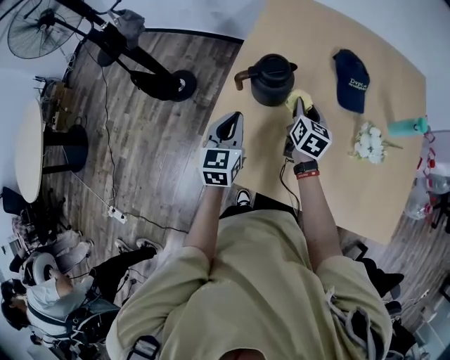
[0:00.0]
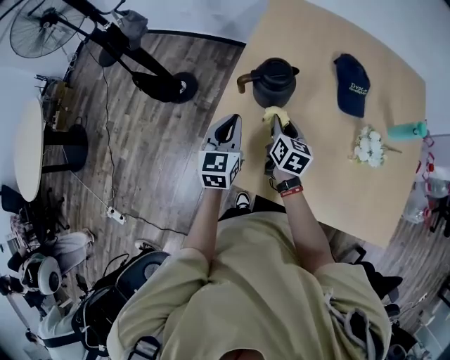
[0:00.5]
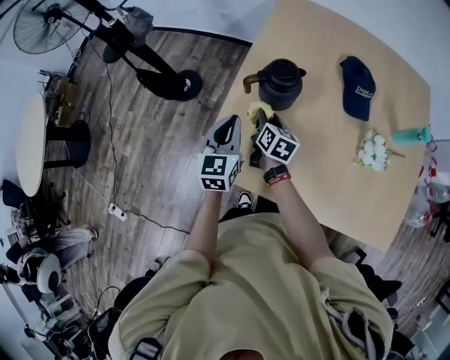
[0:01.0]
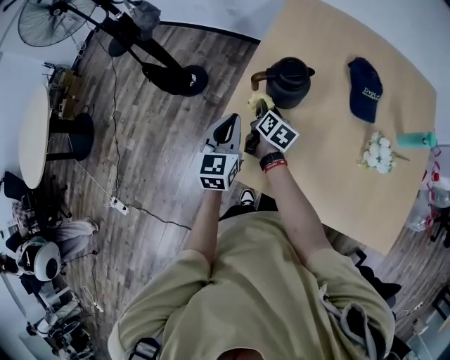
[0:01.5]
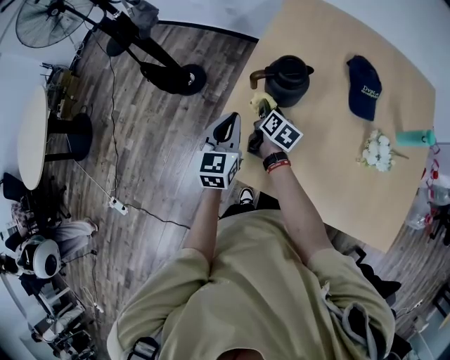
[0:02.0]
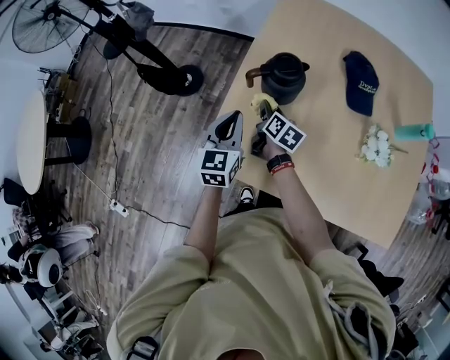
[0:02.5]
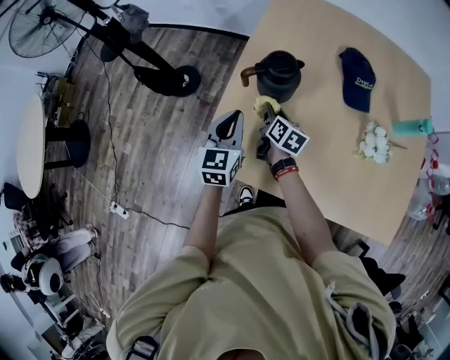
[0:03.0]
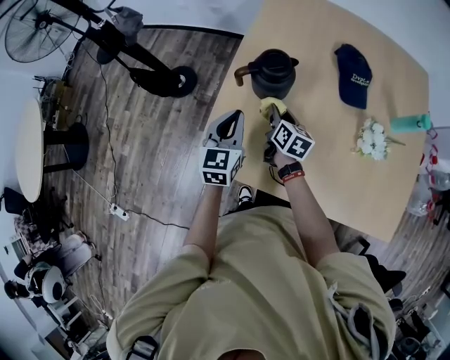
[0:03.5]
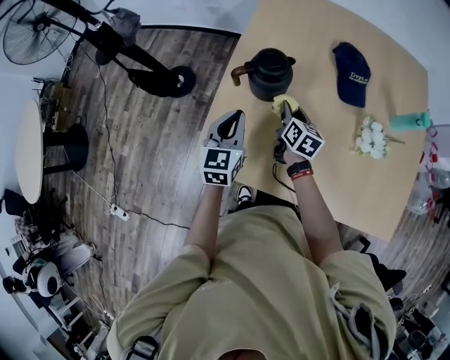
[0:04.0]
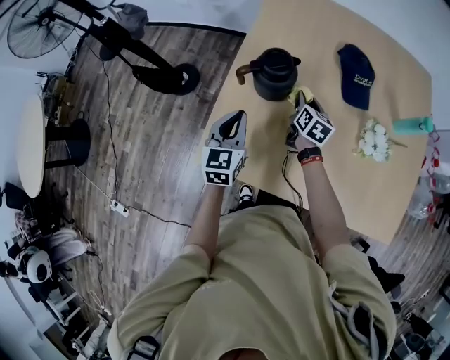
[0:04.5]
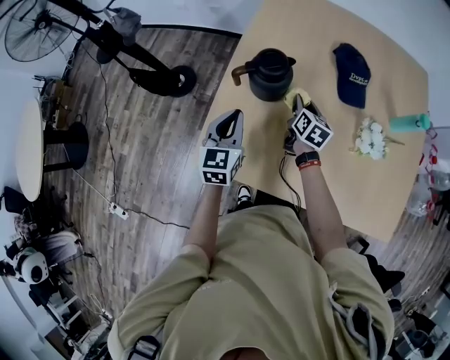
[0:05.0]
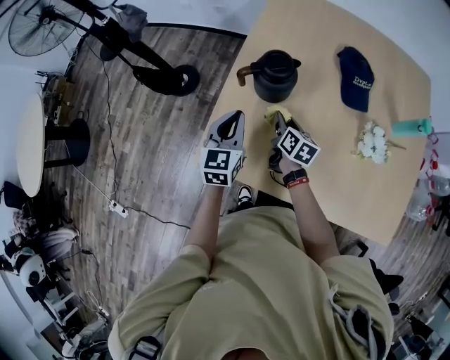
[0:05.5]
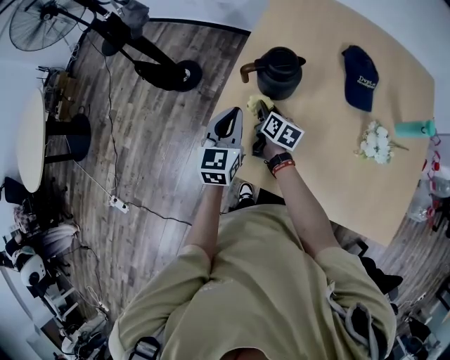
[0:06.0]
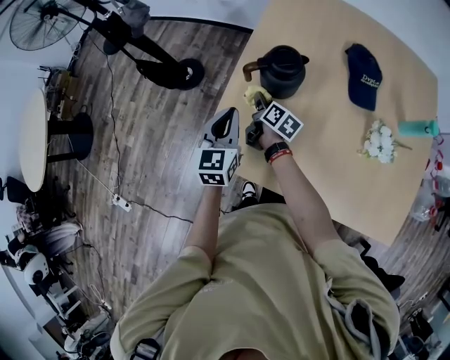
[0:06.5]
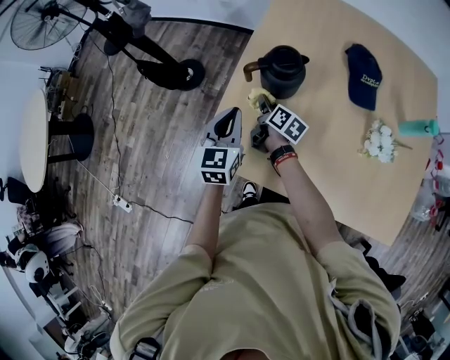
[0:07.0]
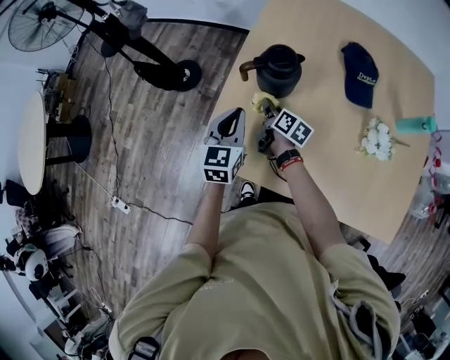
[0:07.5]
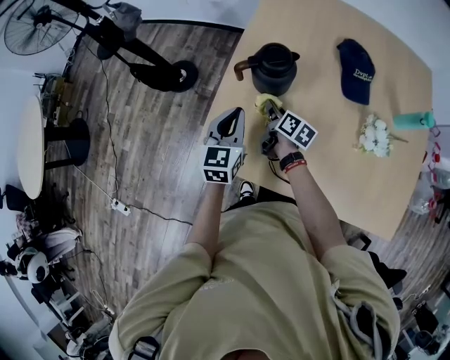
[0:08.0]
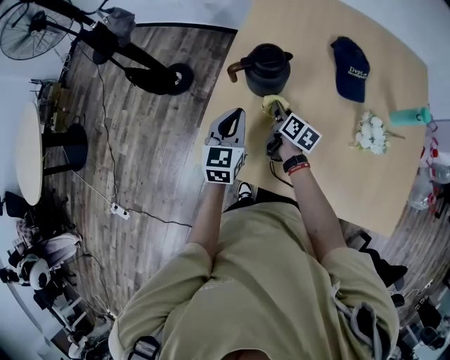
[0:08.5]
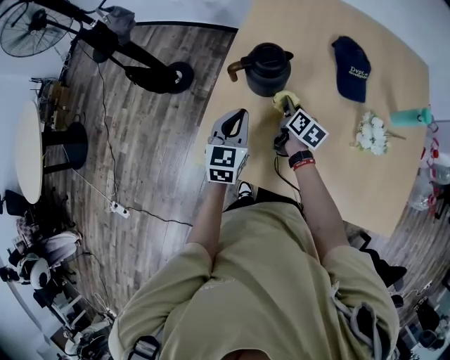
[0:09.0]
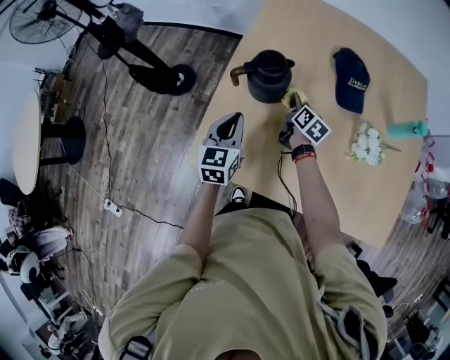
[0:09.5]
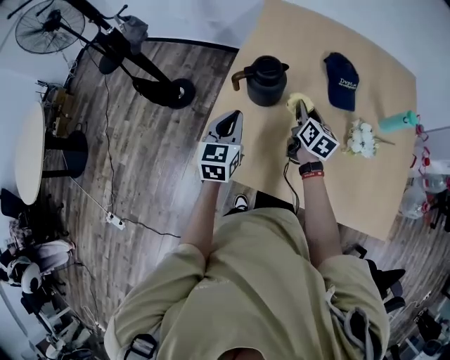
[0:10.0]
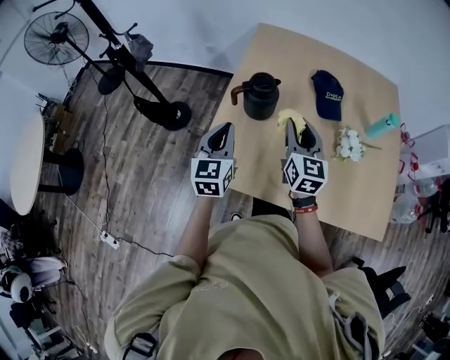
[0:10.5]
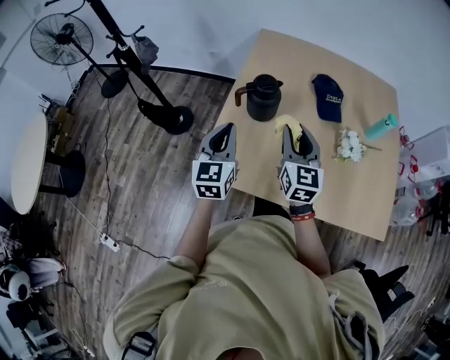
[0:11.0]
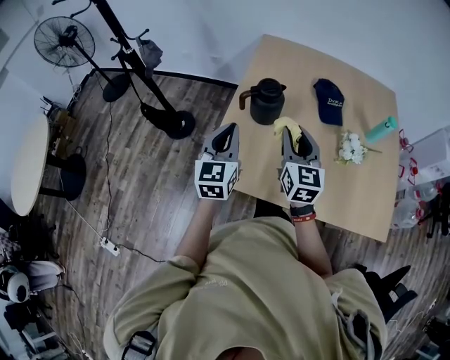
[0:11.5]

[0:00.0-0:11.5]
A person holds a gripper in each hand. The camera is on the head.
0.0 to 2.0 s: The right gripper heads to the left and downward, covering about 15 cm, and rotates roughly 30 degrees.
2.0 to 4.0 s: The right gripper travels to the right by some 10 cm. Meanwhile the left gripper shifts some 5 cm to the right.
4.0 to 6.0 s: The right gripper moves to the left, roughly 10 cm.
6.0 to 7.5 s: There are only small adjustments of the grippers.
7.5 to 9.5 s: The right gripper goes roughly 15 cm to the right.
9.5 to 11.5 s: The right gripper is displaced upward and backward by about 35 cm, and rolls counterclockwise, seen from behind, by roughly 40 degrees; the left gripper moves upward and backward, about 20 cm.

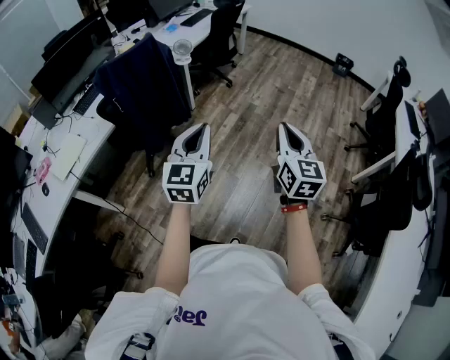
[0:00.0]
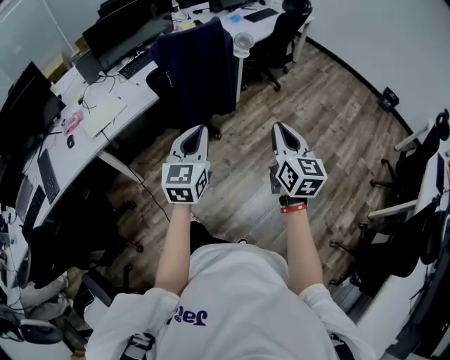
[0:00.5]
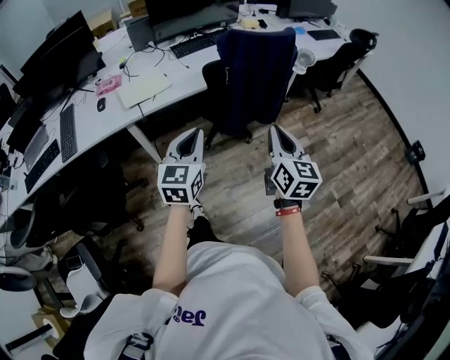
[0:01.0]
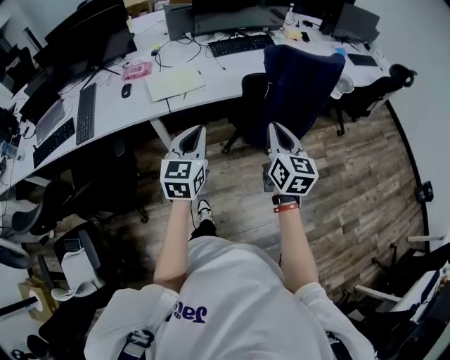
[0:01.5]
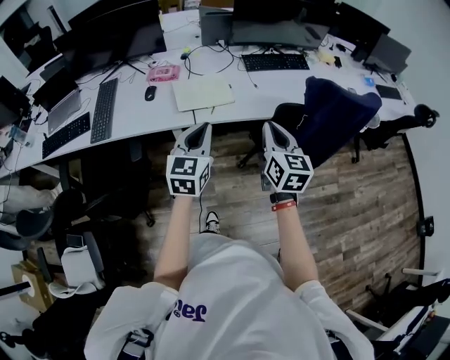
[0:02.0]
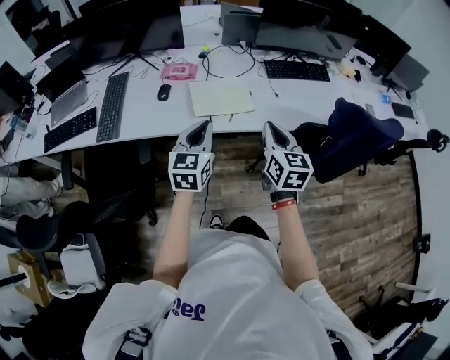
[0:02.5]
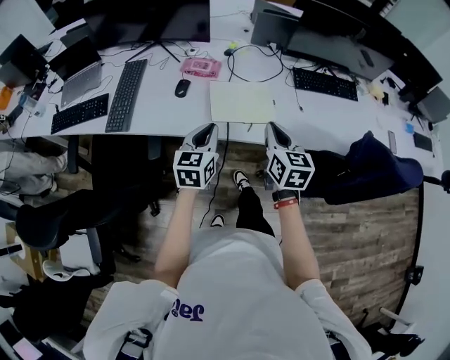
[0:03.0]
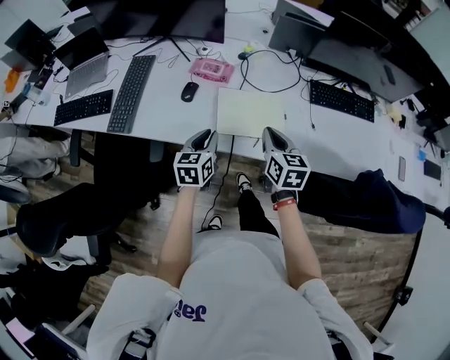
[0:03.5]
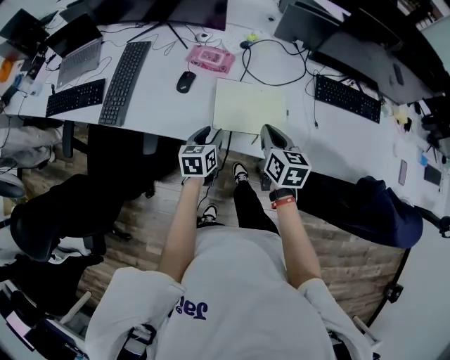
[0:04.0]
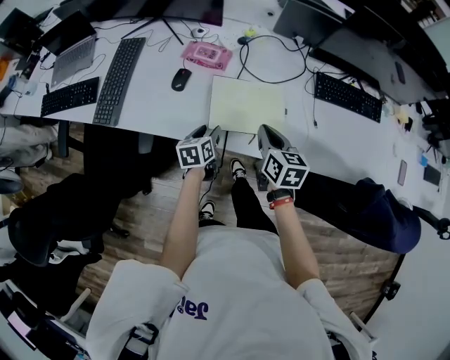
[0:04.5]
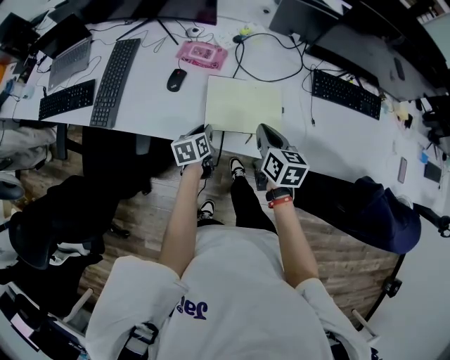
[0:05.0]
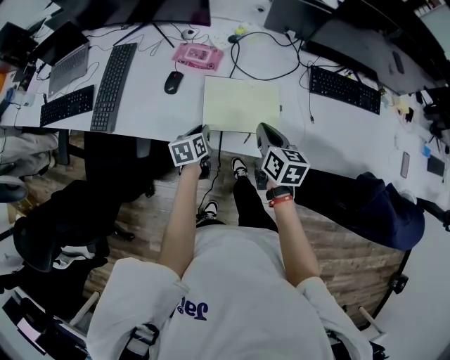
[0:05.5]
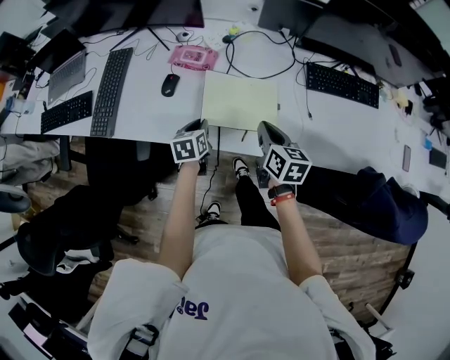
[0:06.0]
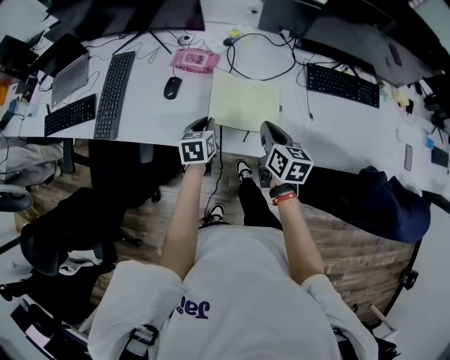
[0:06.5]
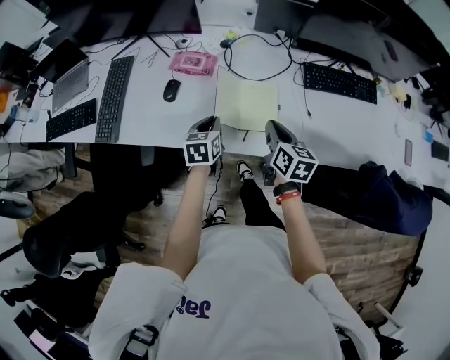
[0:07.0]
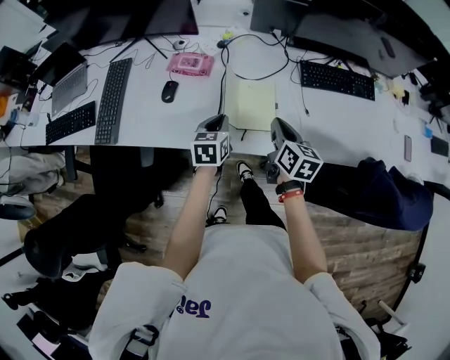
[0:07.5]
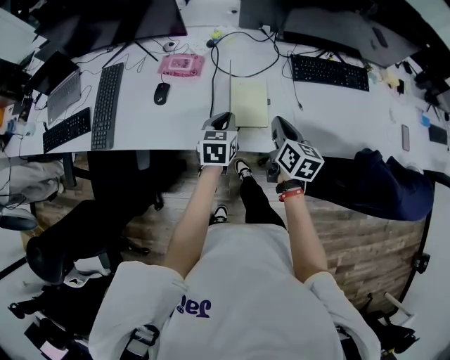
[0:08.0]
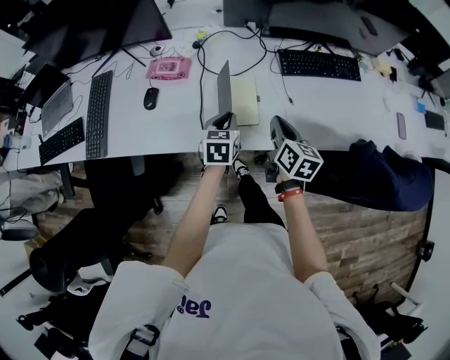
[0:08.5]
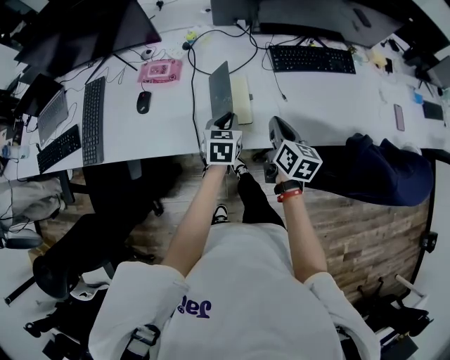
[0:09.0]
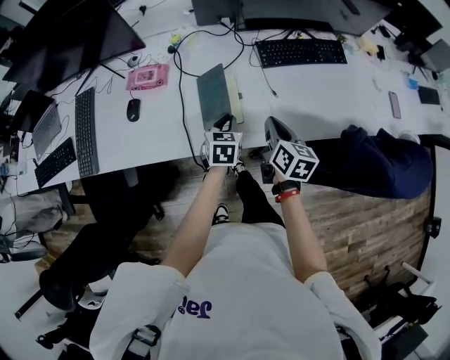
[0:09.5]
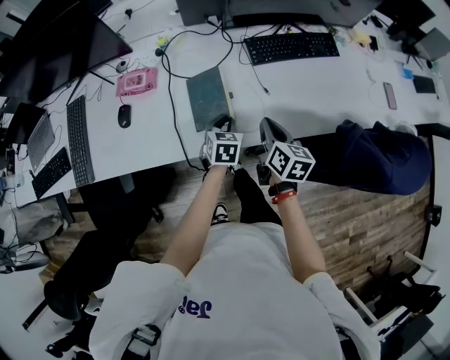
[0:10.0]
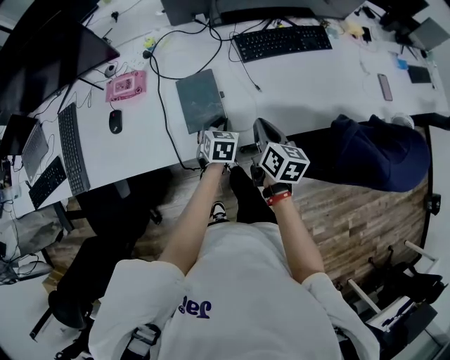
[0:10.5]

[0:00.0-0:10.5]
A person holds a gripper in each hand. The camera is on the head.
0.0 to 2.0 s: Both grippers are carried about 70 cm. The right gripper rotates about 50 degrees. Meanwhile the left gripper changes its angle by roughly 50 degrees.
2.0 to 4.0 s: The left gripper shifts some 40 cm forward and downward, turns by roughly 40 degrees, and opens up. The right gripper goes about 40 cm forward, downward and to the left, and turns by about 30 degrees.
4.0 to 6.5 s: The right gripper goes approximately 5 cm to the right. The left gripper goes some 5 cm forward, and closes its fingers.
6.5 to 8.5 s: Both grippers travel together to the right, about 15 cm.
8.5 to 10.5 s: The right gripper is displaced to the right by some 5 cm. The left gripper heads downward and to the right, covering approximately 15 cm.

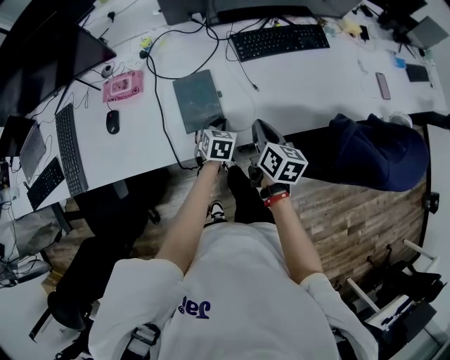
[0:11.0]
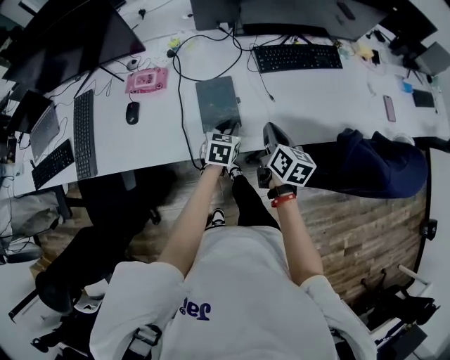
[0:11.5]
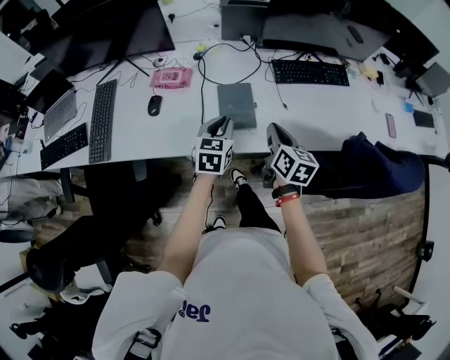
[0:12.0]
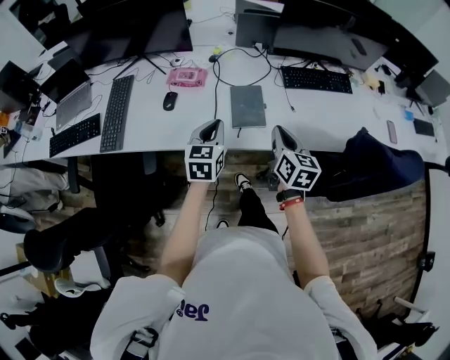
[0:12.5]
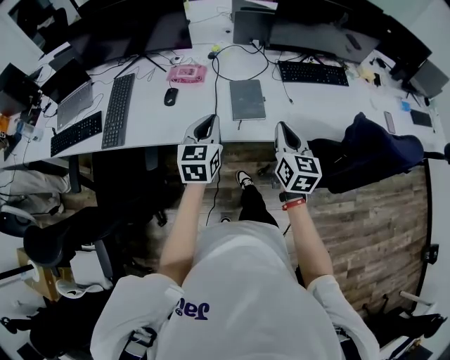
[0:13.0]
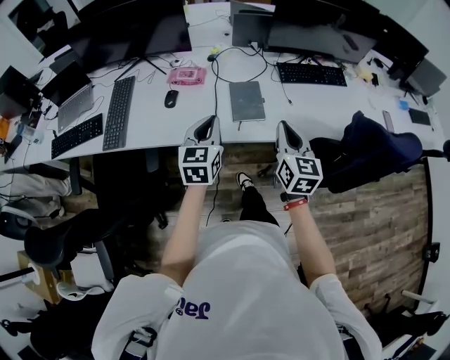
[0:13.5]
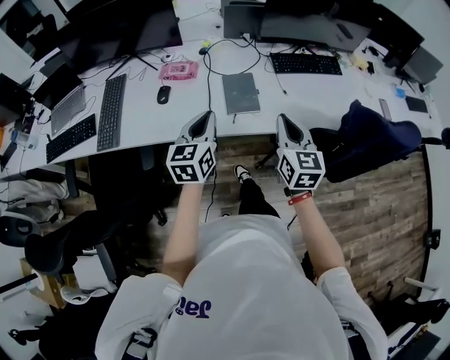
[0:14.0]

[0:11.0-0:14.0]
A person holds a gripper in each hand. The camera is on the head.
11.0 to 12.5 s: The right gripper goes about 20 cm upward, backward and to the left, and changes its angle by about 20 degrees. The left gripper heads upward, to the left and backward, covering approximately 35 cm, and turns by about 30 degrees.
12.5 to 14.0 s: The two grippers go about 5 cm backward.

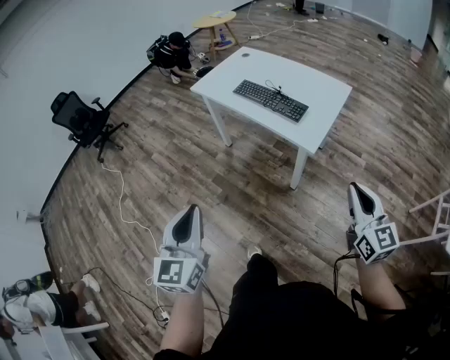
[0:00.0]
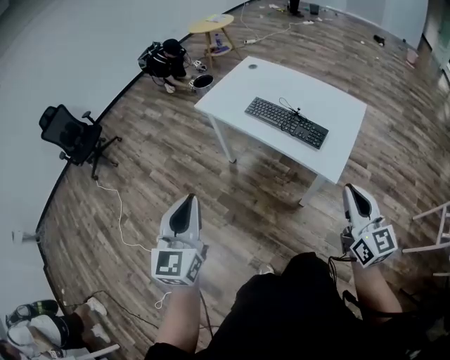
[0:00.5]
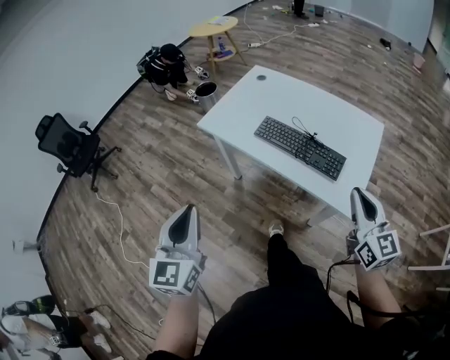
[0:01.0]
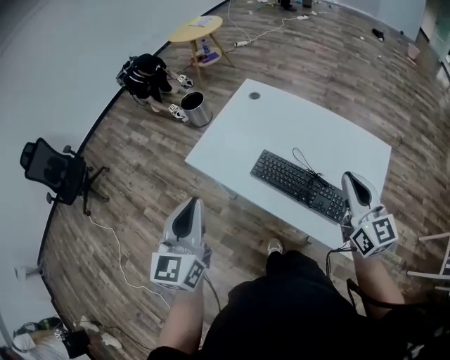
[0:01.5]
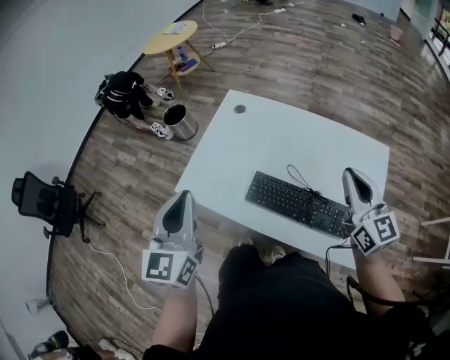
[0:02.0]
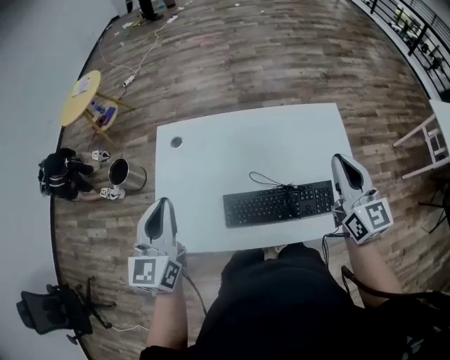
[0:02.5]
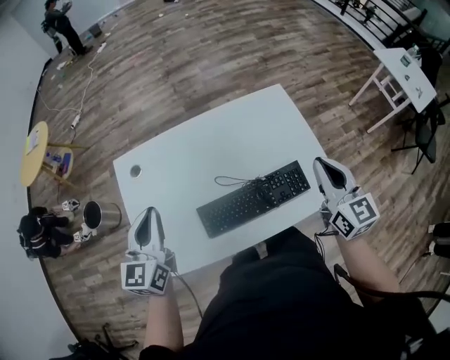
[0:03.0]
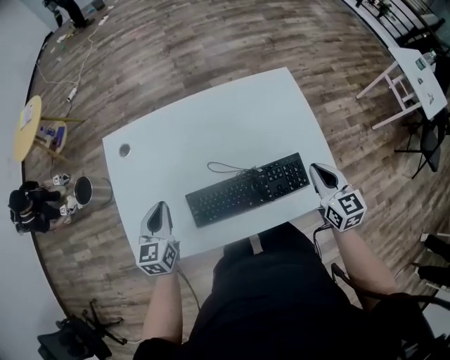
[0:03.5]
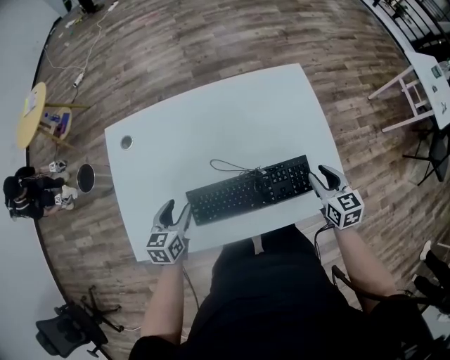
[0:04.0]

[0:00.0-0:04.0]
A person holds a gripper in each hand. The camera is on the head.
0.0 to 2.0 s: The pair of grippers is taken forward, about 60 cm.
2.0 to 4.0 s: Both grippers travel together downward, roughly 25 cm. The left gripper tips its fingers downward by some 30 degrees, and opens; the right gripper points its fingers approximately 30 degrees further downward, and opens up.
